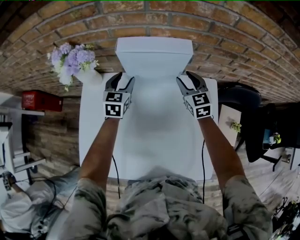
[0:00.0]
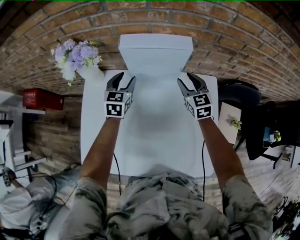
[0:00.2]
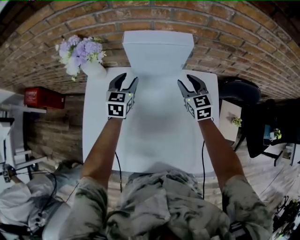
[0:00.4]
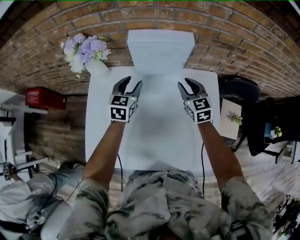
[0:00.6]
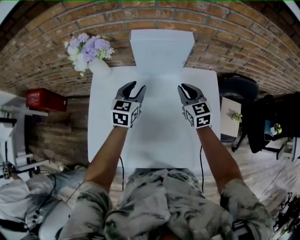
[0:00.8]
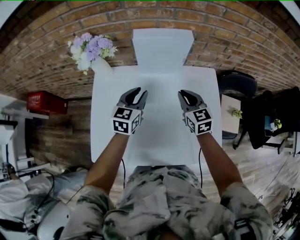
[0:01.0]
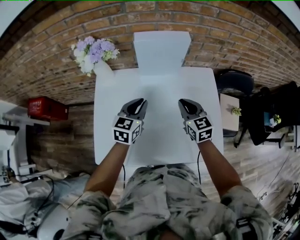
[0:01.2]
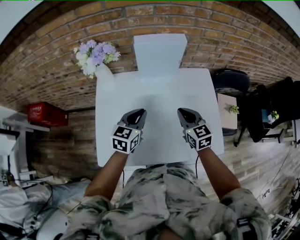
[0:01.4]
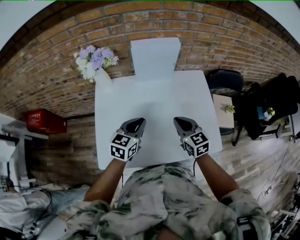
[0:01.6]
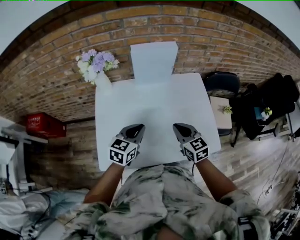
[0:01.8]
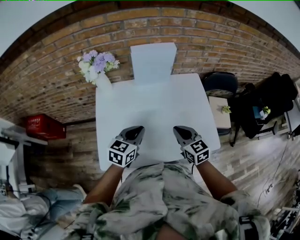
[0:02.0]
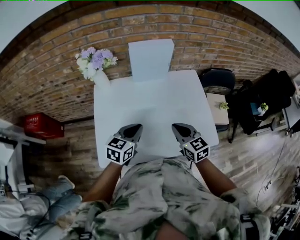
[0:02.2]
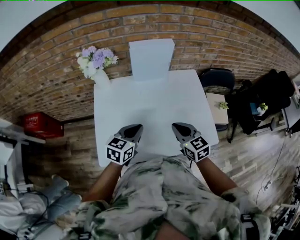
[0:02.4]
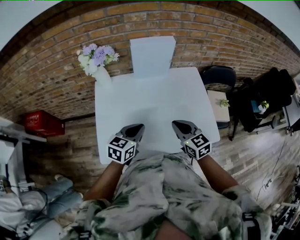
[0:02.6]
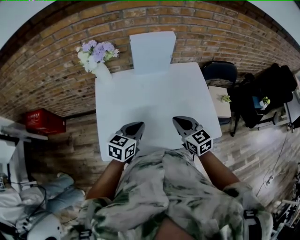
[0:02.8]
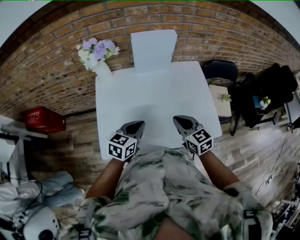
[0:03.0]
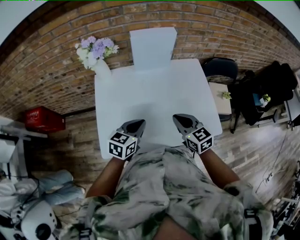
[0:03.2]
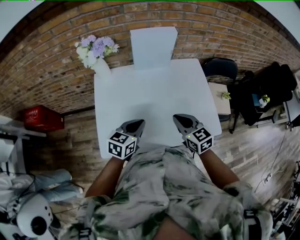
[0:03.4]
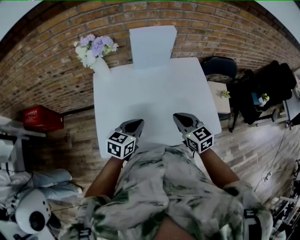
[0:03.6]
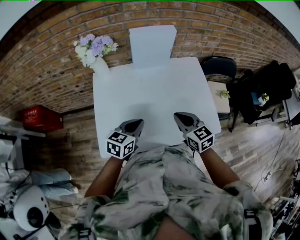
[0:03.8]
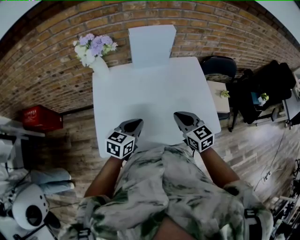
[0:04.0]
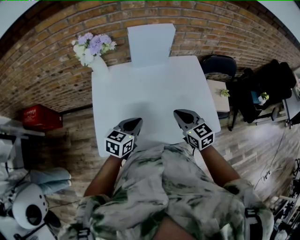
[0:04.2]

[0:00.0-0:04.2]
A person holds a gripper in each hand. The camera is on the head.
0:00.0 to 0:01.4: Both grippers travel together backward, roughly 30 cm. The right gripper closes. The left gripper turns by approximately 20 degrees, and closes.
0:01.4 to 0:02.8: Both grippers move backward, roughly 15 cm.
0:02.8 to 0:04.2: The grippers stay close to where they were, moving slightly.

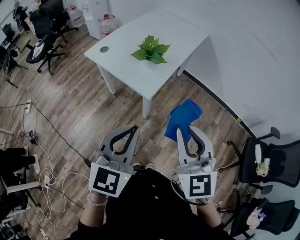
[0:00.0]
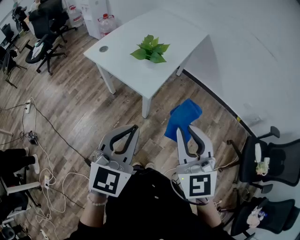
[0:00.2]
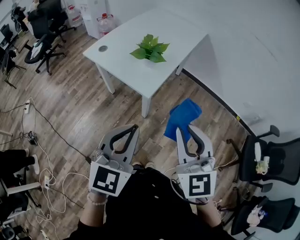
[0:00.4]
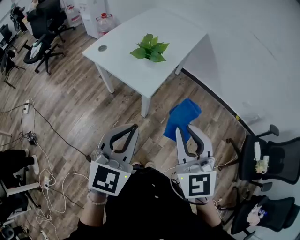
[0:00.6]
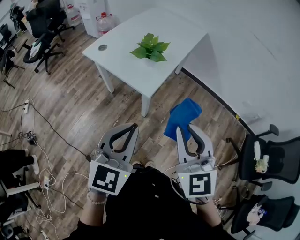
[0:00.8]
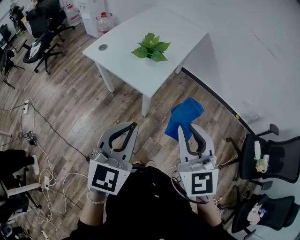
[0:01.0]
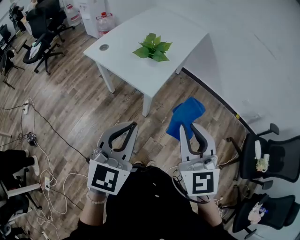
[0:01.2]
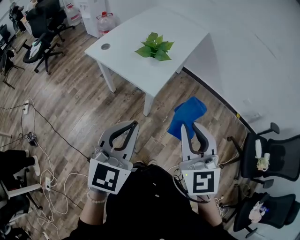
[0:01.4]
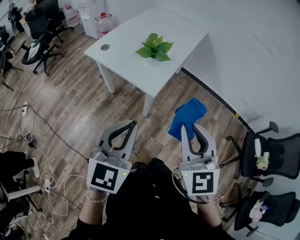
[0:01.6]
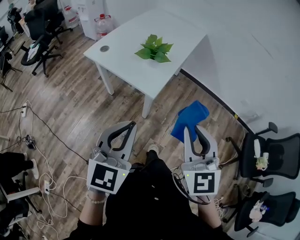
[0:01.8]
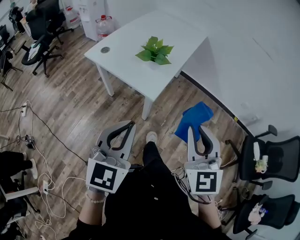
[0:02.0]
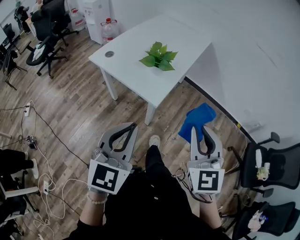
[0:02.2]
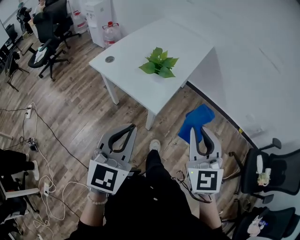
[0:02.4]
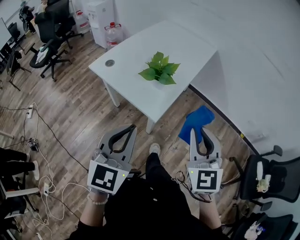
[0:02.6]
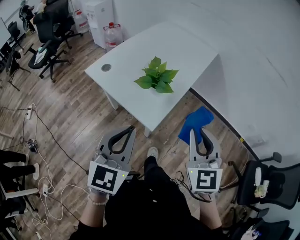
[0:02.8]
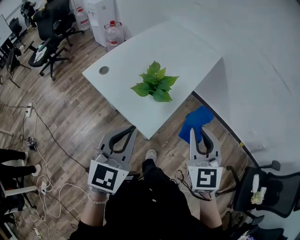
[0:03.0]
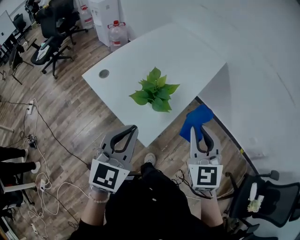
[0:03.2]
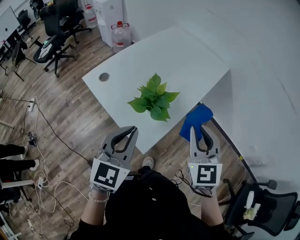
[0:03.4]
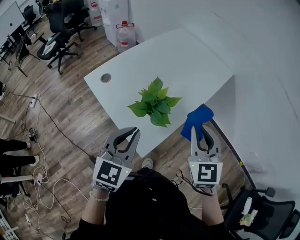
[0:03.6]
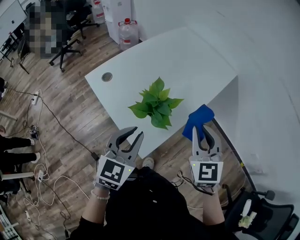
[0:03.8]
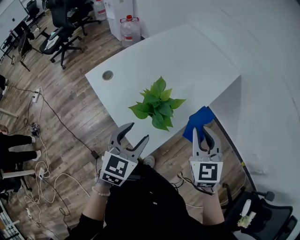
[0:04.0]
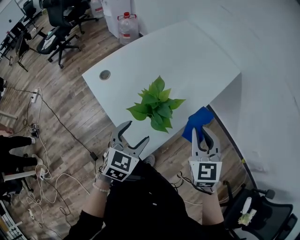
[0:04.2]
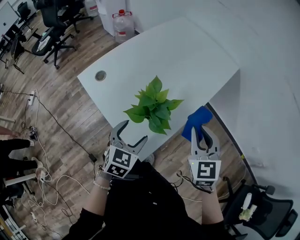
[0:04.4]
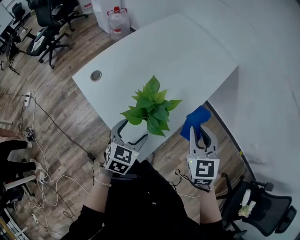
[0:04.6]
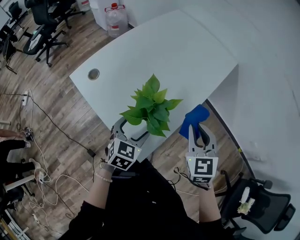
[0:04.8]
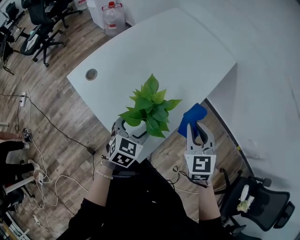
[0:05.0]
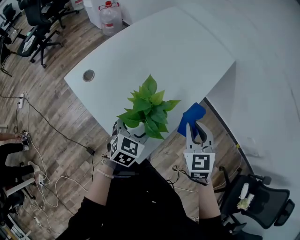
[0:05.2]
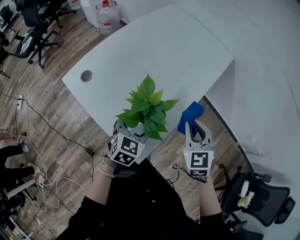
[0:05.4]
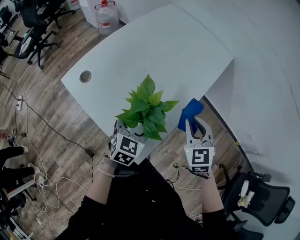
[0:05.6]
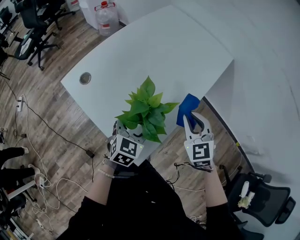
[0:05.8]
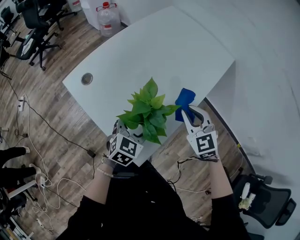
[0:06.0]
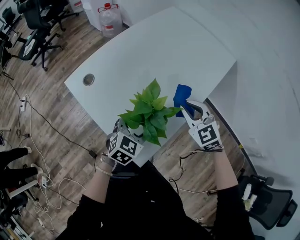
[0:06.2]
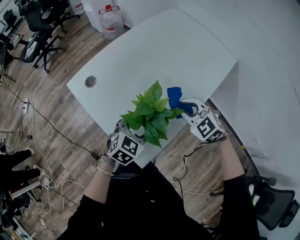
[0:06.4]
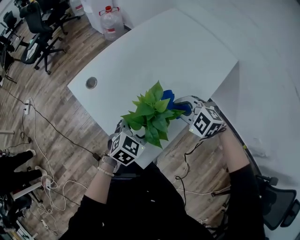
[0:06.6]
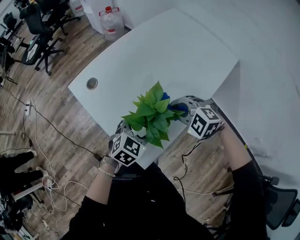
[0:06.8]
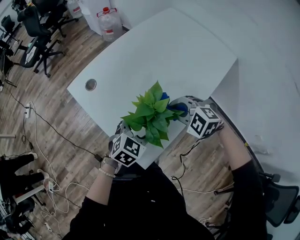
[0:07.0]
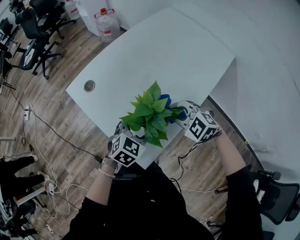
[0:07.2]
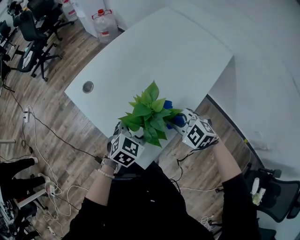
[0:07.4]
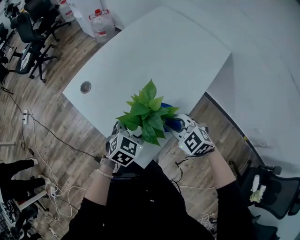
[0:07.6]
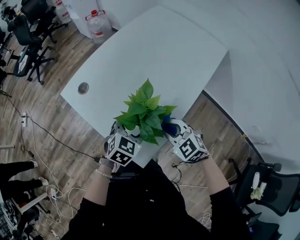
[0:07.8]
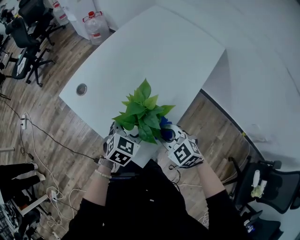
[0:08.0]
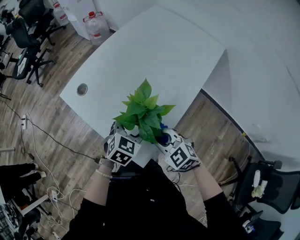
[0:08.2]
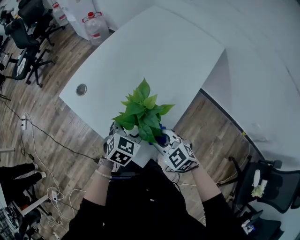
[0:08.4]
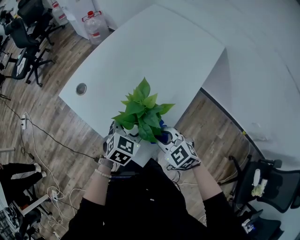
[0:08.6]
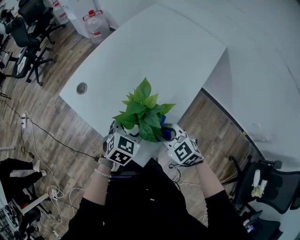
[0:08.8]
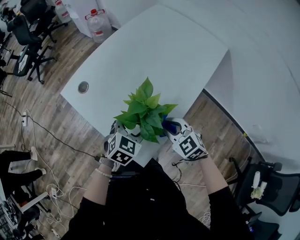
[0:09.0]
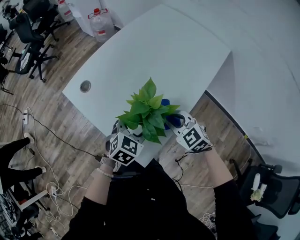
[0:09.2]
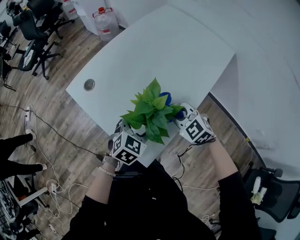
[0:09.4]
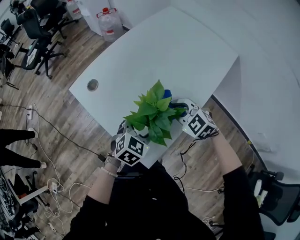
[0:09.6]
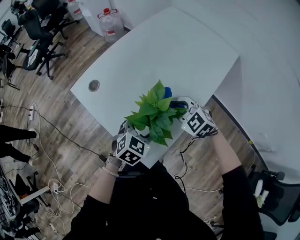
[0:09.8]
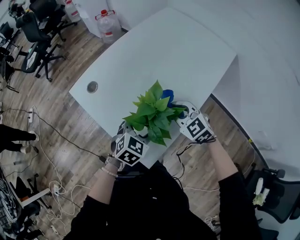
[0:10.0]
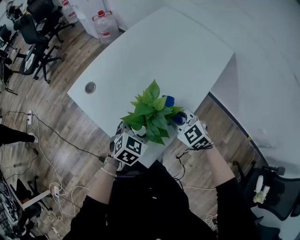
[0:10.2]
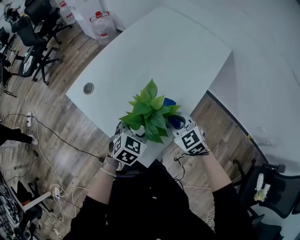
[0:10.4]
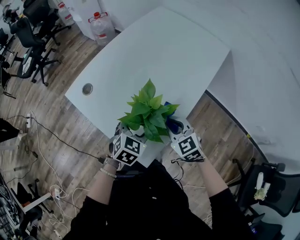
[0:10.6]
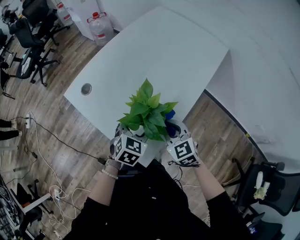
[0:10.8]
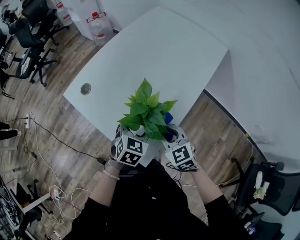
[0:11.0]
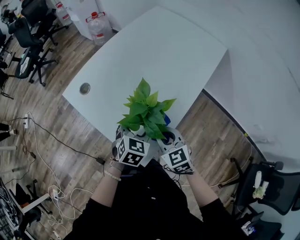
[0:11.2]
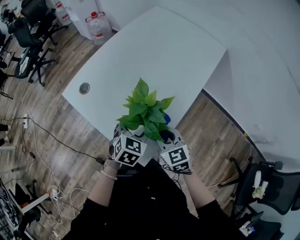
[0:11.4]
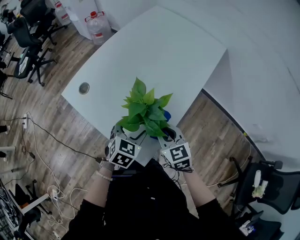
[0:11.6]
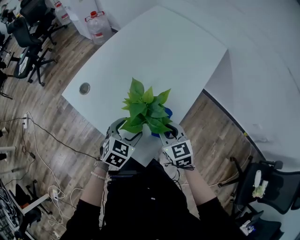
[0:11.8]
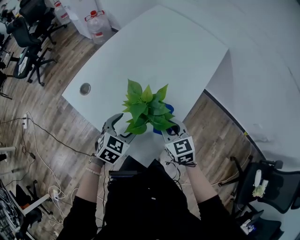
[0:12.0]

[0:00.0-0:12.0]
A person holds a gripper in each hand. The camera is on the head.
0:00.0 to 0:01.6: The left gripper travels to the left by approximately 5 cm.
0:01.6 to 0:03.0: Both grippers move forward, about 20 cm.
0:03.0 to 0:04.4: The right gripper heads forward and downward, covering some 20 cm. The left gripper moves downward and forward, about 25 cm, rotates some 20 degrees, and opens.
0:04.4 to 0:06.0: The left gripper goes about 10 cm forward. Meanwhile the right gripper is displaced forward and downward by roughly 10 cm.
0:06.0 to 0:07.6: The right gripper heads to the left and downward, covering about 10 cm, and swivels about 30 degrees.
0:10.4 to 0:12.0: The left gripper is displaced to the left by some 5 cm; the right gripper changes its angle by about 20 degrees.

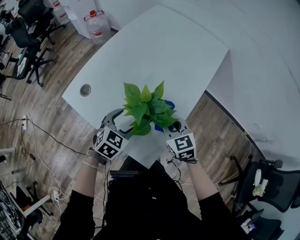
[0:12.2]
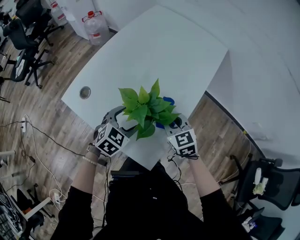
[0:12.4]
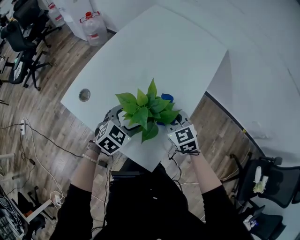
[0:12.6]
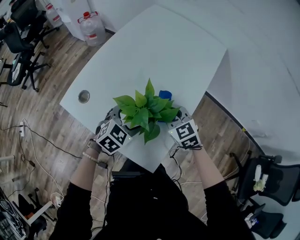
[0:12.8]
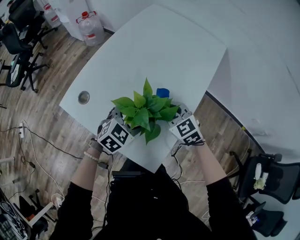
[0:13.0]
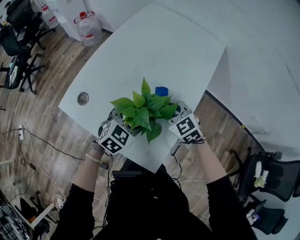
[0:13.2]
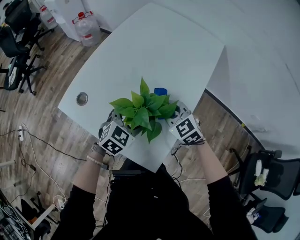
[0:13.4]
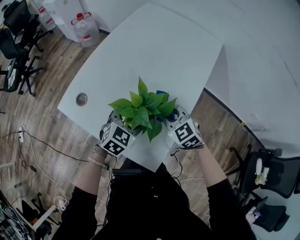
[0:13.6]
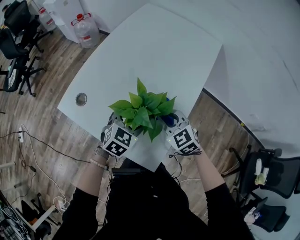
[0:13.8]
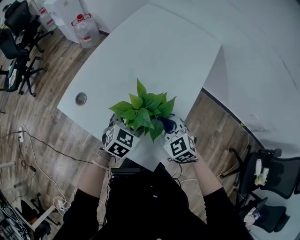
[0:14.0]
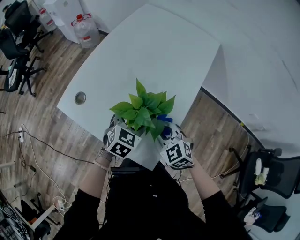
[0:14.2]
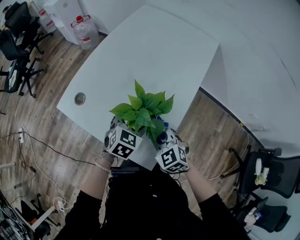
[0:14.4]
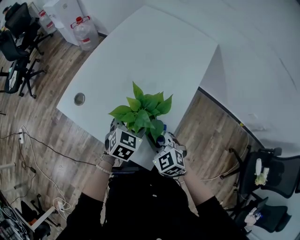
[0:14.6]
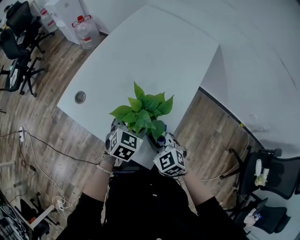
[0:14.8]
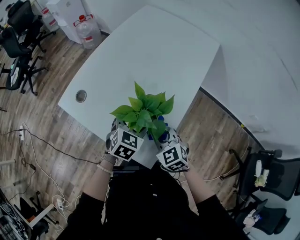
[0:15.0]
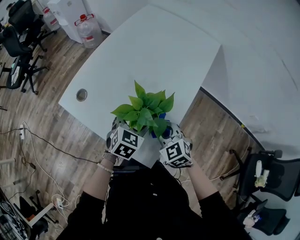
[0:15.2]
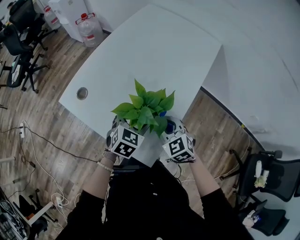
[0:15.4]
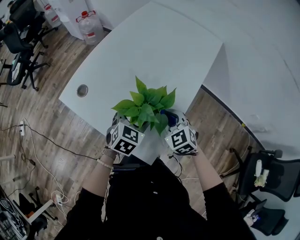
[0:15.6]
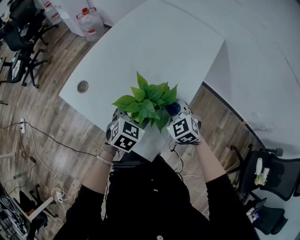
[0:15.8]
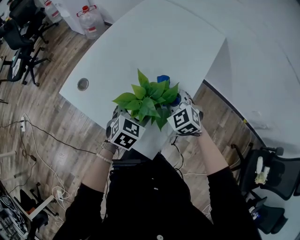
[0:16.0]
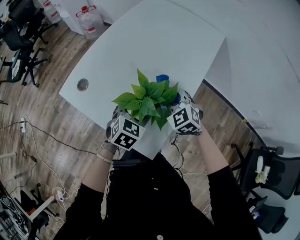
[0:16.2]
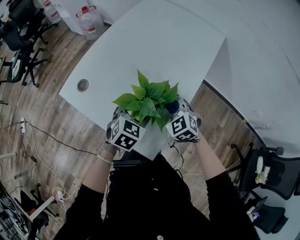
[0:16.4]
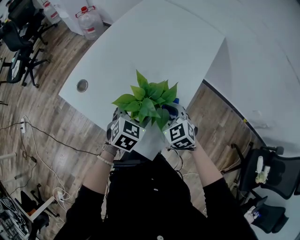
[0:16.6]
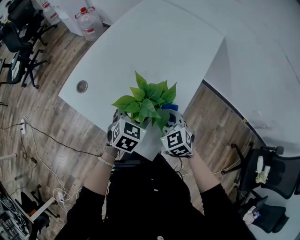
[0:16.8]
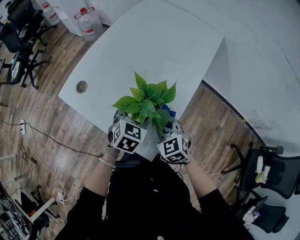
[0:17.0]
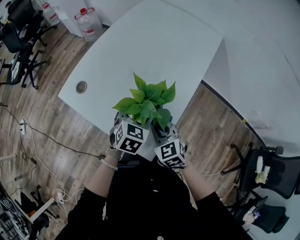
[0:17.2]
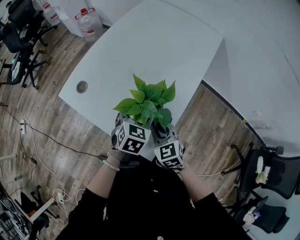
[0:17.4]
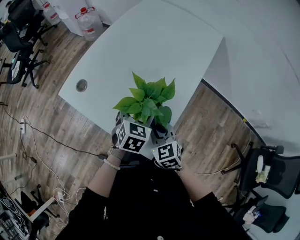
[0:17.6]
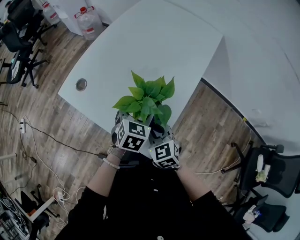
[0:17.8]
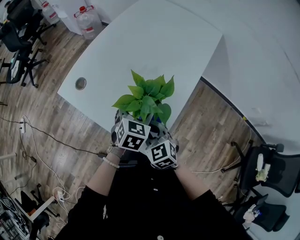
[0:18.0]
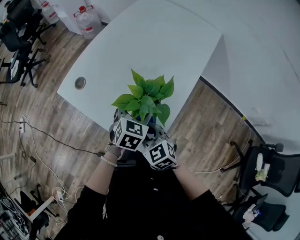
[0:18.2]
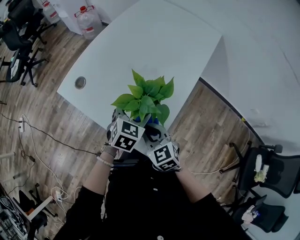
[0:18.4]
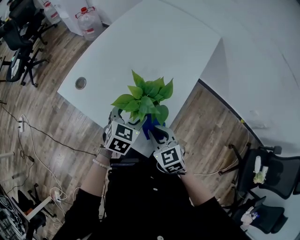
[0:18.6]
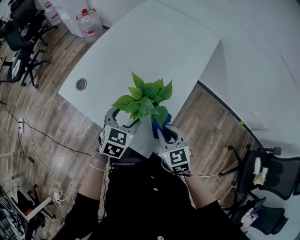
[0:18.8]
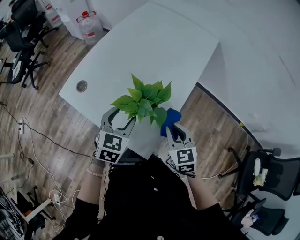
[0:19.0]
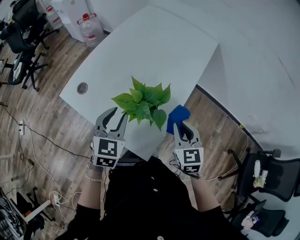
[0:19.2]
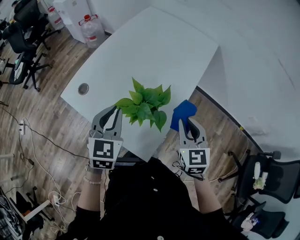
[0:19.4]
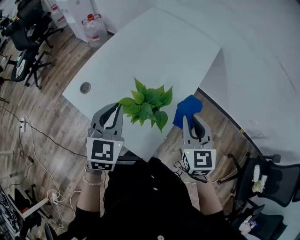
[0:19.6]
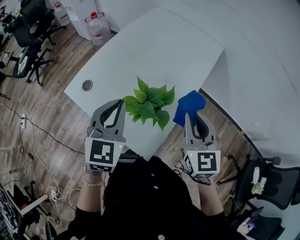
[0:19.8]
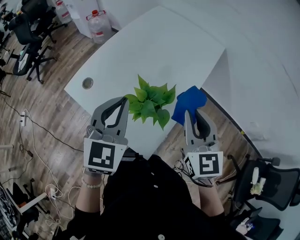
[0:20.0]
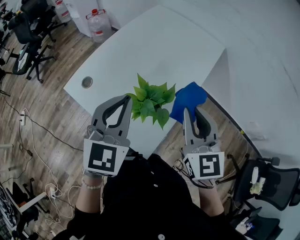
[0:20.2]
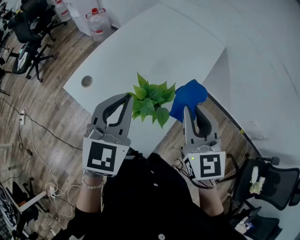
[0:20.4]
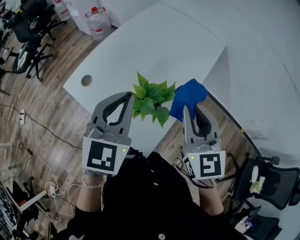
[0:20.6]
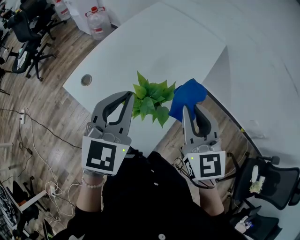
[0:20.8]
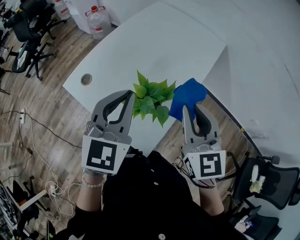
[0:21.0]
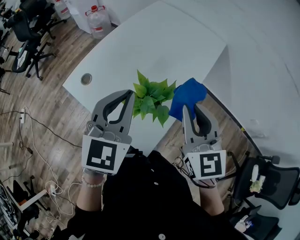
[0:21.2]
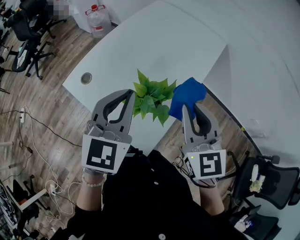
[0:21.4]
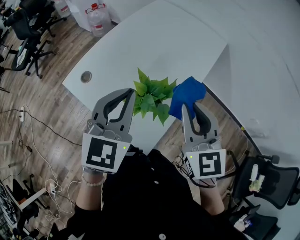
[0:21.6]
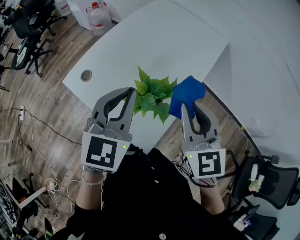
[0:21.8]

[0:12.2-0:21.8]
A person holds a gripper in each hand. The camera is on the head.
0:12.2 to 0:13.8: The left gripper ends up some 5 cm from where it was.
0:15.4 to 0:17.0: The right gripper goes forward and returns, approximately 5 cm each way.
0:17.0 to 0:18.6: The right gripper heads backward, covering roughly 5 cm.
0:18.6 to 0:20.2: Both grippers travel together upward, about 25 cm. The left gripper turns by about 30 degrees, and closes; the right gripper turns by some 30 degrees.
0:20.2 to 0:21.8: There are only small adjustments of the grippers.
